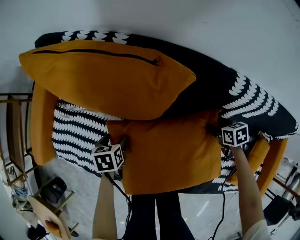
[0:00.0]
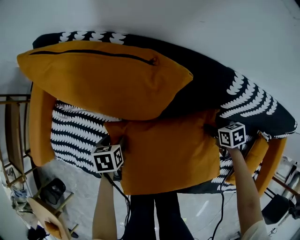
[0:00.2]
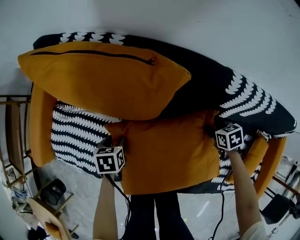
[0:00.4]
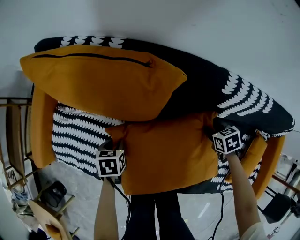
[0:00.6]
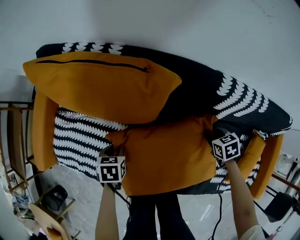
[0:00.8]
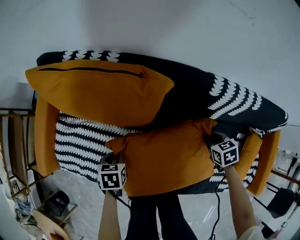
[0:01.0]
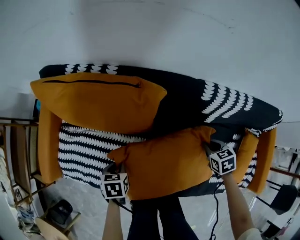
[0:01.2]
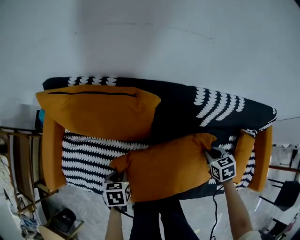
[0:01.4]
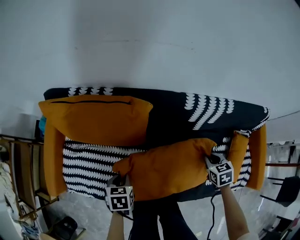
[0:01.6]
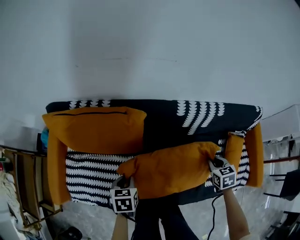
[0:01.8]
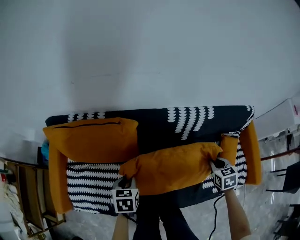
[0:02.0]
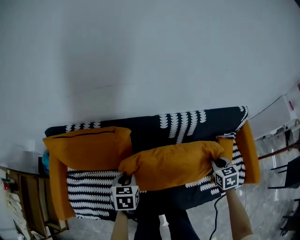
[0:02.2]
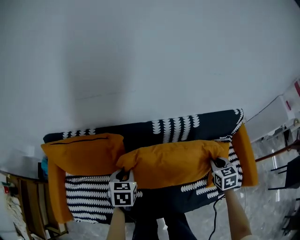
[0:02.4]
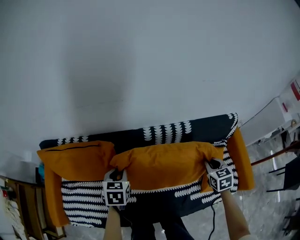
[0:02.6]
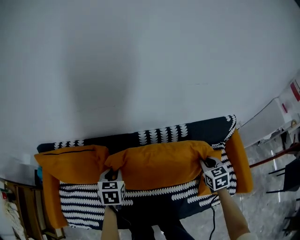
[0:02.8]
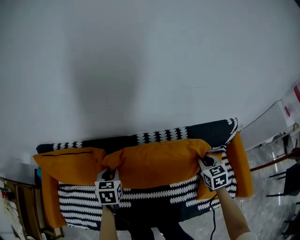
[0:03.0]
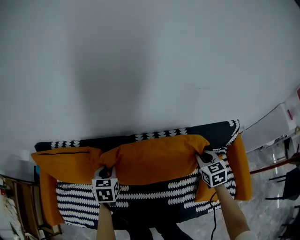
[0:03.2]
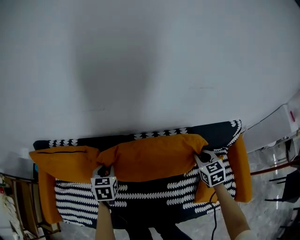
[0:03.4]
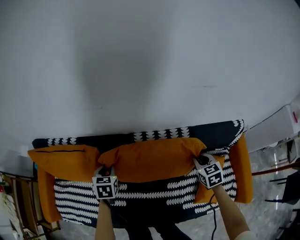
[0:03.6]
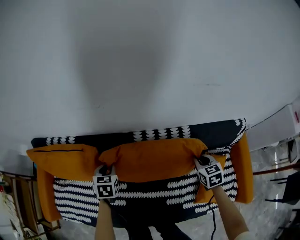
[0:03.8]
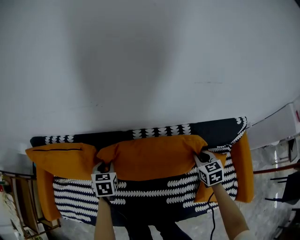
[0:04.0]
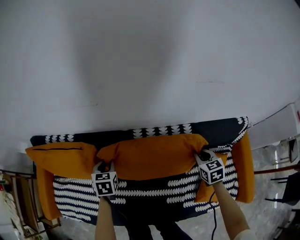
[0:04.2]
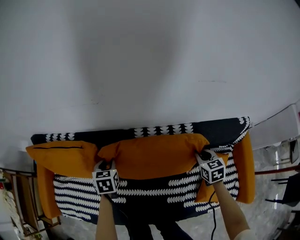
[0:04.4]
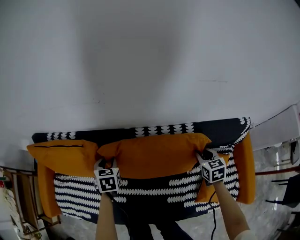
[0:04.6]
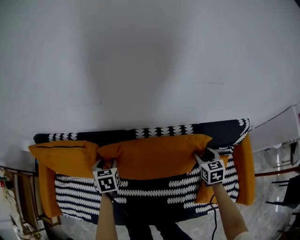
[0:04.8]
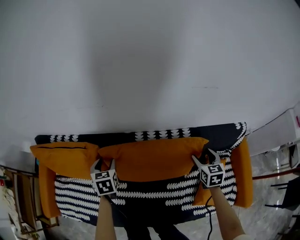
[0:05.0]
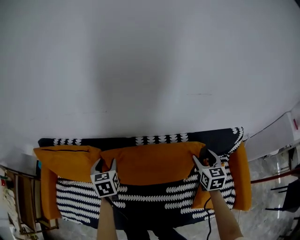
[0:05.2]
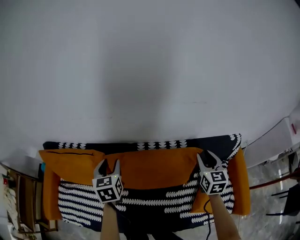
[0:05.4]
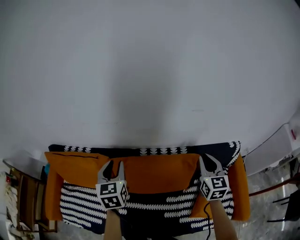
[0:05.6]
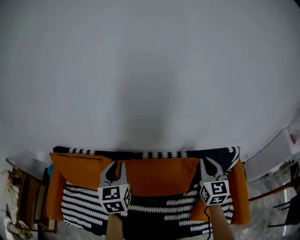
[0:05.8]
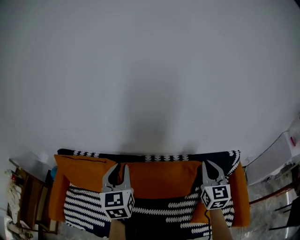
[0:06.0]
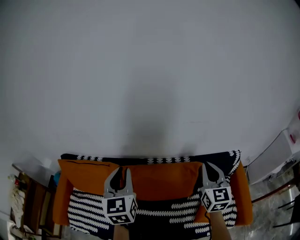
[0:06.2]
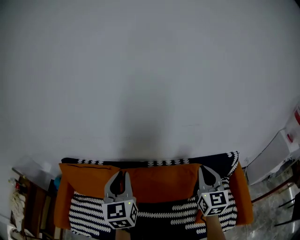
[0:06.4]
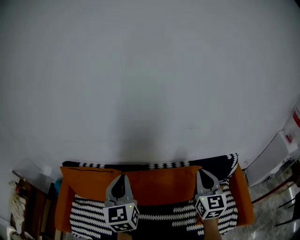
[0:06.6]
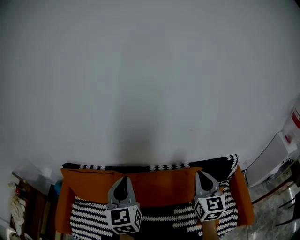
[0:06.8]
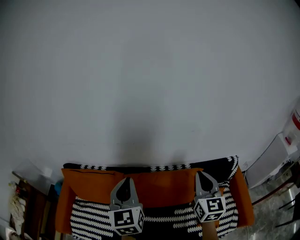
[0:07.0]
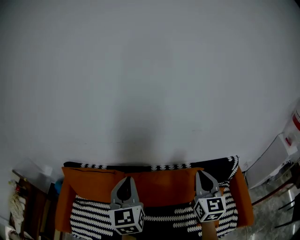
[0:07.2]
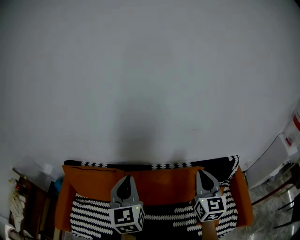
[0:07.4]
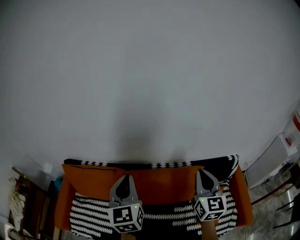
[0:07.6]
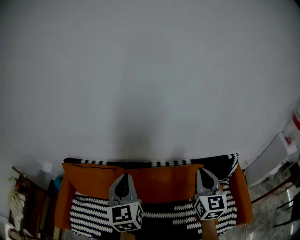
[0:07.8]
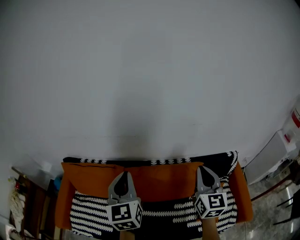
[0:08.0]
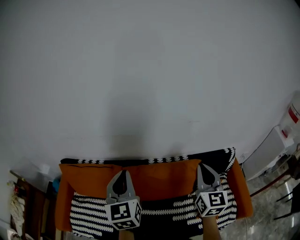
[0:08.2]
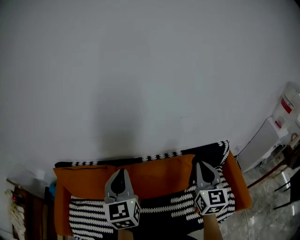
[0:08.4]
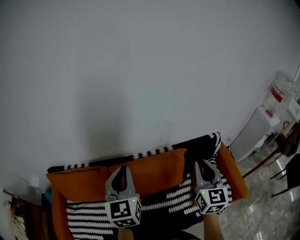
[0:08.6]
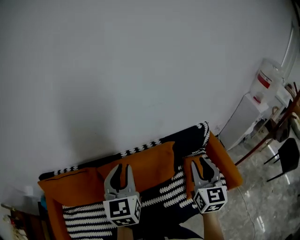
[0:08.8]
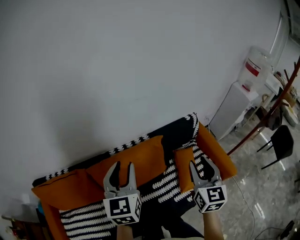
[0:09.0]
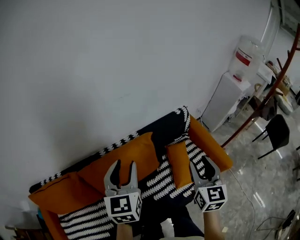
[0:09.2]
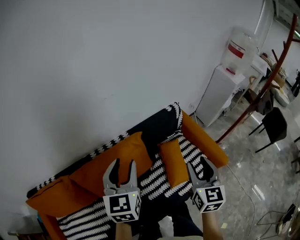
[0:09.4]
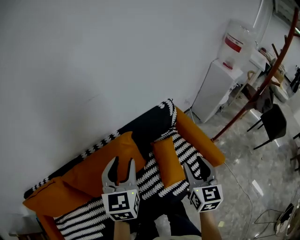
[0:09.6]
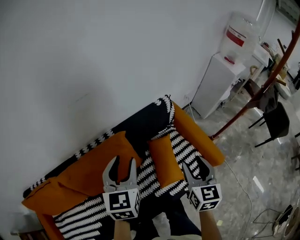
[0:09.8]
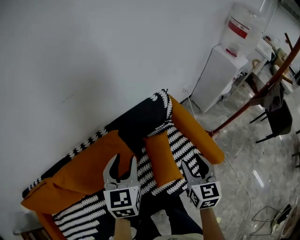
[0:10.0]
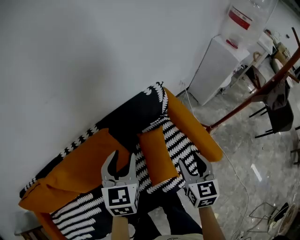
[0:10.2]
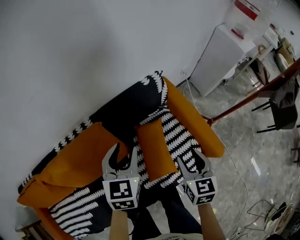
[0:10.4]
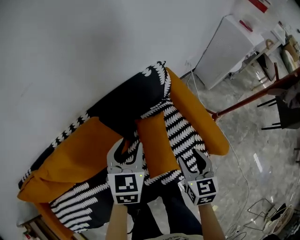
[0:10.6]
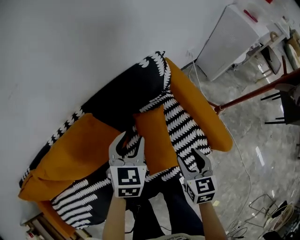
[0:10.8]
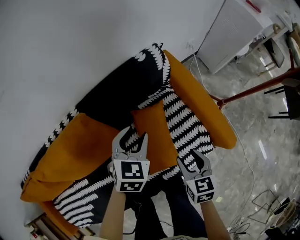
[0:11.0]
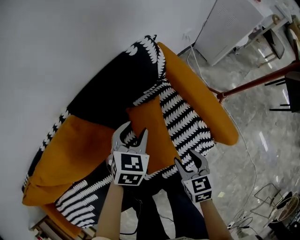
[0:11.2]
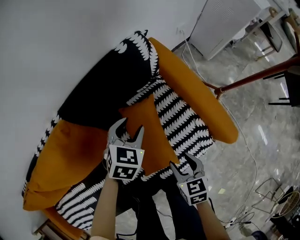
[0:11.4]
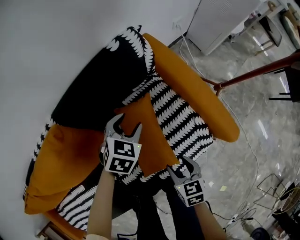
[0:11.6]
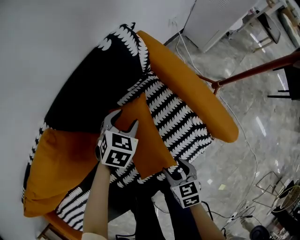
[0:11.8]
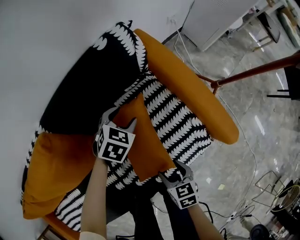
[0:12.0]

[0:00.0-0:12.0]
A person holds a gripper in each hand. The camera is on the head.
0:00.0 to 0:01.6: The grippers both shift upward by some 15 cm. The left gripper closes its fingers; the right gripper rotates some 20 degrees, and closes.
0:01.6 to 0:03.0: The right gripper is displaced to the right, upward and forward by some 25 cm, while the left gripper shifts about 30 cm forward, upward and to the right, and turns by about 20 degrees.
0:03.0 to 0:04.4: The left gripper heads downward, covering some 10 cm, while the right gripper moves downward and forward, roughly 10 cm.
0:04.4 to 0:06.0: Both grippers move upward, roughly 35 cm. The left gripper tips its fingers upward by some 40 degrees, and opens and closes again; the right gripper tips its fingers upward by about 40 degrees, and opens, then closes once more.
0:06.0 to 0:07.6: The left gripper is displaced upward and backward by about 10 cm, while the right gripper is displaced to the left, upward and backward by approximately 15 cm.
0:07.6 to 0:09.0: The left gripper moves roughly 15 cm, turns by approximately 30 degrees, and opens up, while the right gripper shifts by about 15 cm, swivels approximately 30 degrees, and opens.
0:09.0 to 0:10.4: The right gripper is displaced to the right and downward by approximately 35 cm, and turns by approximately 20 degrees, while the left gripper goes approximately 40 cm to the right, downward and forward, and changes its angle by some 30 degrees.
0:10.4 to 0:12.0: Both grippers travel together downward, some 30 cm. The right gripper changes its angle by roughly 30 degrees, while the left gripper turns by roughly 40 degrees.

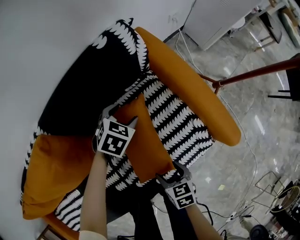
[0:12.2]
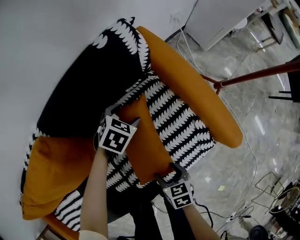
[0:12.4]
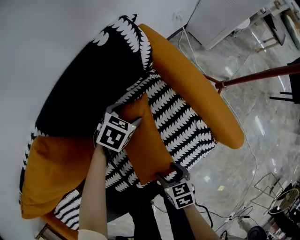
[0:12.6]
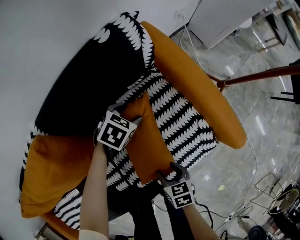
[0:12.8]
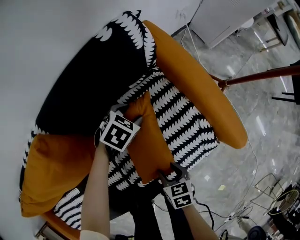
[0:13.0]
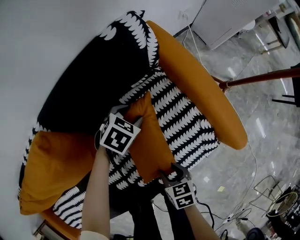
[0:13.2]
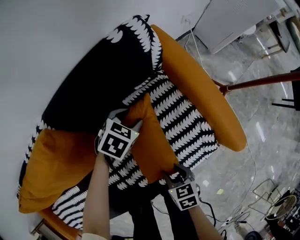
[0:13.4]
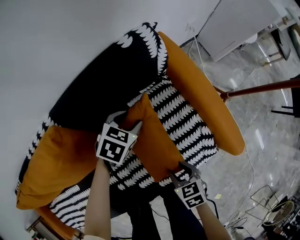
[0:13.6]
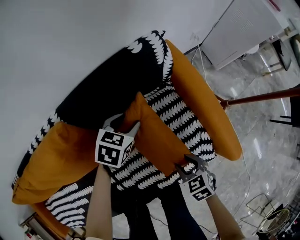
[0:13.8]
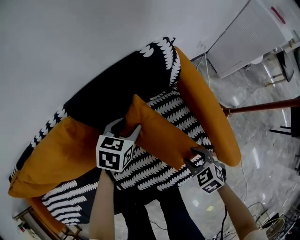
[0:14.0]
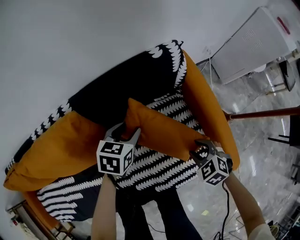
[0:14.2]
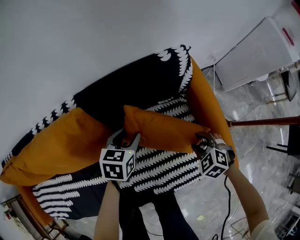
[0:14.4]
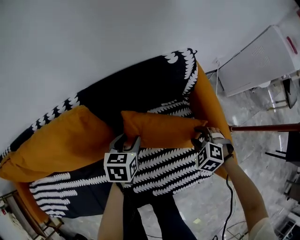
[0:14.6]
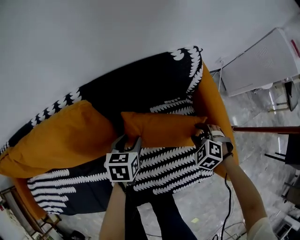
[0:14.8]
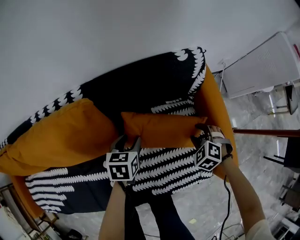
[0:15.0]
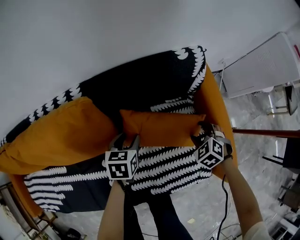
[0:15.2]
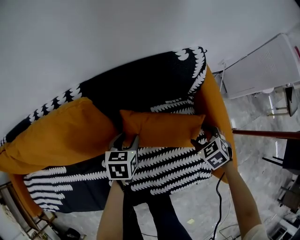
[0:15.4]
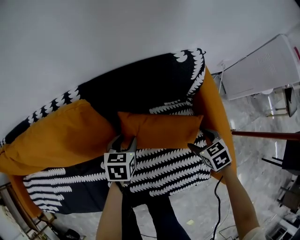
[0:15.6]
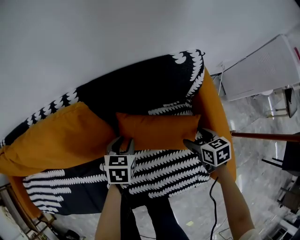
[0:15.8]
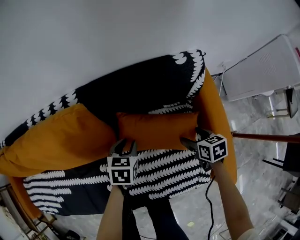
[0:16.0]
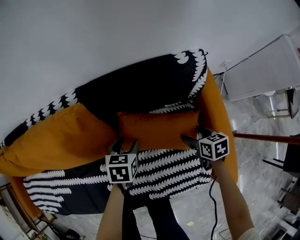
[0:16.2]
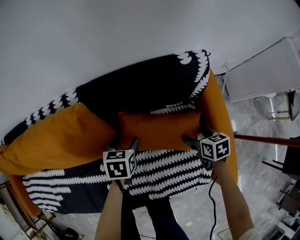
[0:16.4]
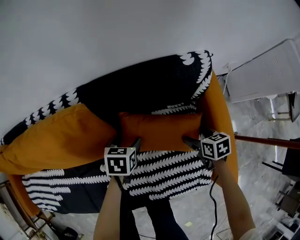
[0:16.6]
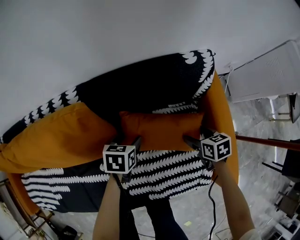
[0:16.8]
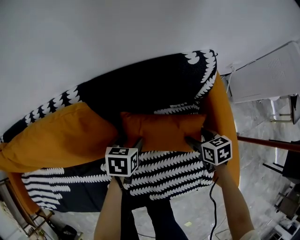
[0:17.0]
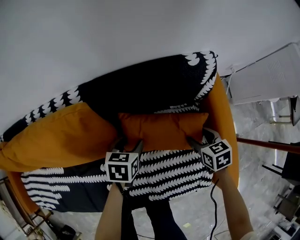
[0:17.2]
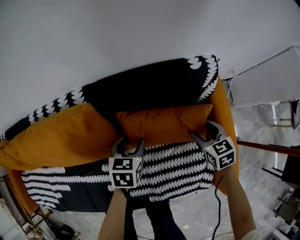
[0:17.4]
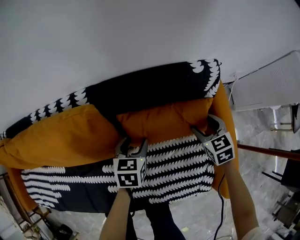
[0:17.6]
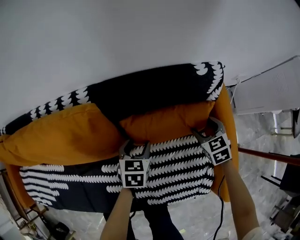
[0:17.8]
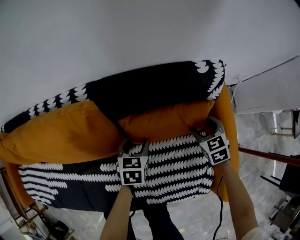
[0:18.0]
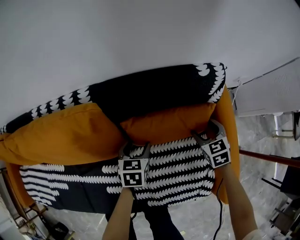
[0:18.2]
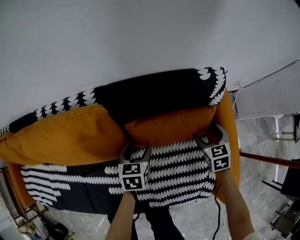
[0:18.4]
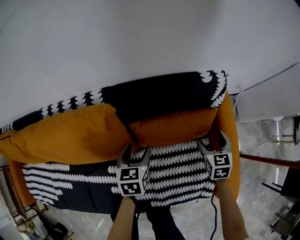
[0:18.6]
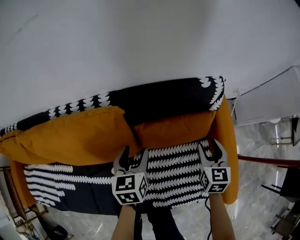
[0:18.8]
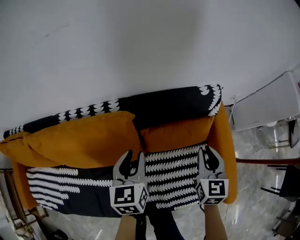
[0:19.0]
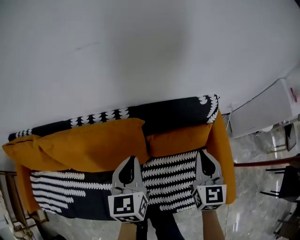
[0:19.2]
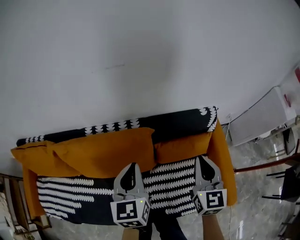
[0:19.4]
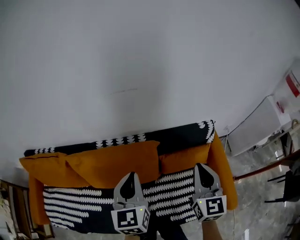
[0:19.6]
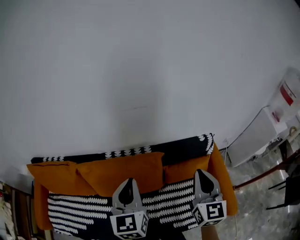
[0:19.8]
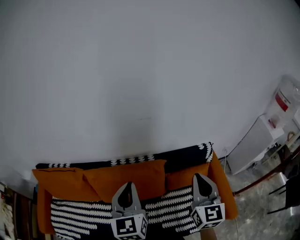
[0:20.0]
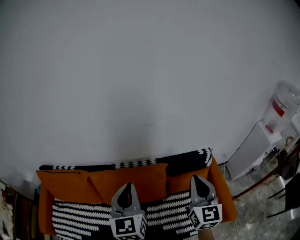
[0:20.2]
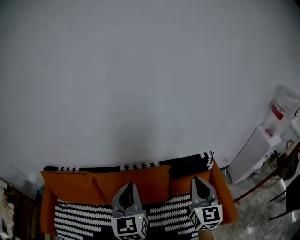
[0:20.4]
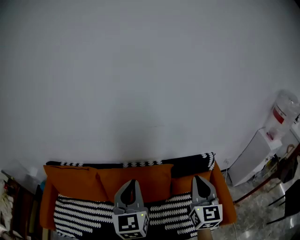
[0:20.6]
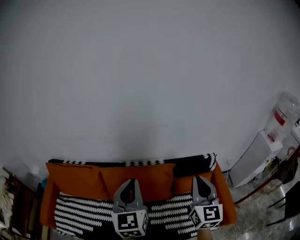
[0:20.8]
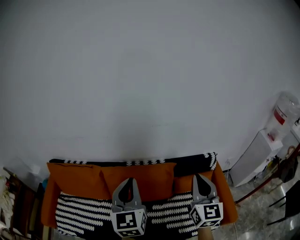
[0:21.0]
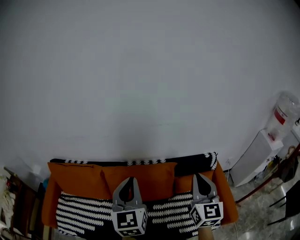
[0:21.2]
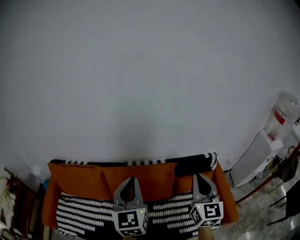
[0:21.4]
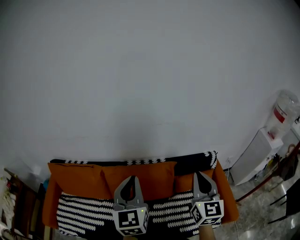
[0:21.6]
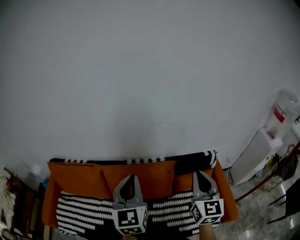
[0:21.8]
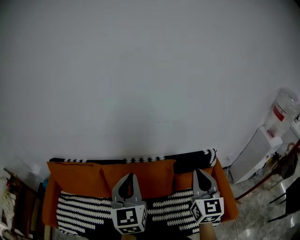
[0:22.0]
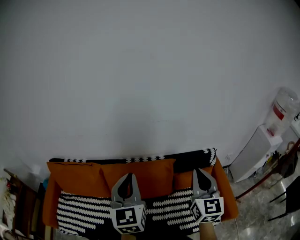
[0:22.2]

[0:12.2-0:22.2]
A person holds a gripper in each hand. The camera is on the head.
0:12.2 to 0:13.6: The right gripper closes its fingers.
0:13.6 to 0:15.0: The left gripper goes some 15 cm to the left and backward, and twists approximately 40 degrees counterclockwise, seen from behind. Meanwhile the right gripper heads forward, covering some 20 cm, and rolls counterclockwise, seen from behind, by roughly 60 degrees.
0:15.0 to 0:16.4: The left gripper opens up. Meanwhile the right gripper rotates around the line of its fingers by some 60 degrees, clockwise from behind, and opens its fingers.
0:16.4 to 0:18.0: The right gripper is displaced forward by some 10 cm, and rotates approximately 30 degrees.
0:18.0 to 0:19.4: The two grippers go about 40 cm upward and to the left. The left gripper points its fingers roughly 30 degrees further upward, and closes its fingers. The right gripper tips its fingers upward by about 40 degrees, and closes its fingers.
0:19.4 to 0:20.8: The grippers both shift upward, to the left and backward by some 30 cm. The left gripper turns by about 20 degrees.
0:20.8 to 0:22.2: The grippers make only small movements.

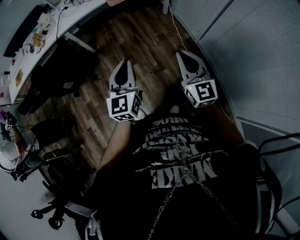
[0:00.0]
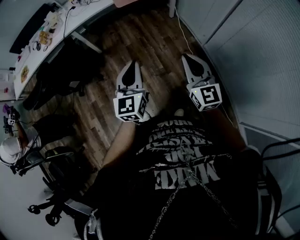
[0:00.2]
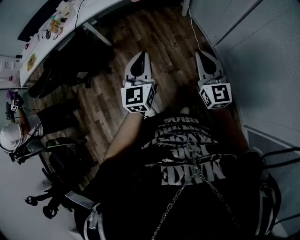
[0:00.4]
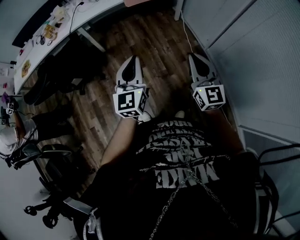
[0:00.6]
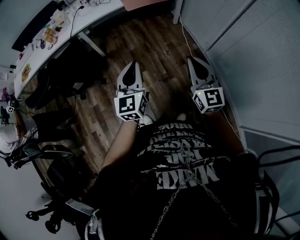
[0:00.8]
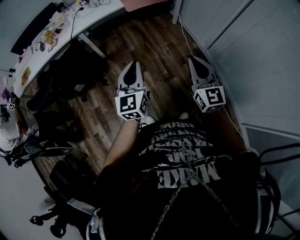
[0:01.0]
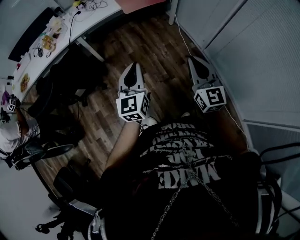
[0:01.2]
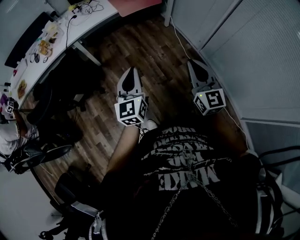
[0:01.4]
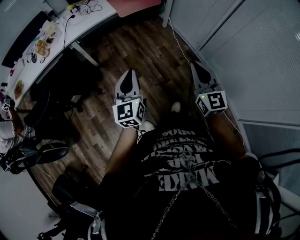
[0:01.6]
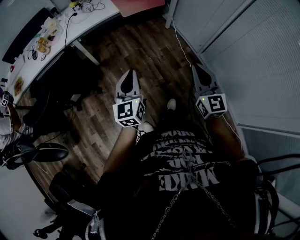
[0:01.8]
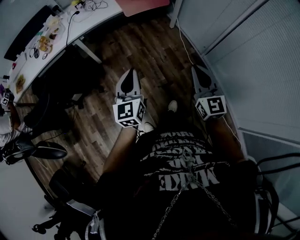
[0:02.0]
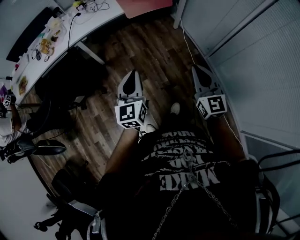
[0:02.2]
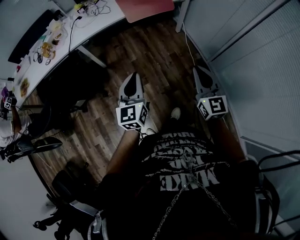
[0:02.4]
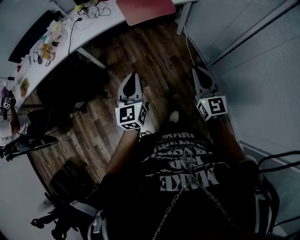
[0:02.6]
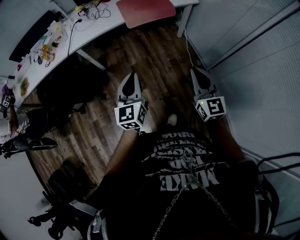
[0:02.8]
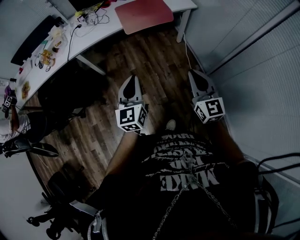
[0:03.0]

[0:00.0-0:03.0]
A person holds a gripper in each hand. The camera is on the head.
0:00.0 to 0:01.6: The left gripper goes roughly 15 cm to the left and forward; the right gripper travels to the left by approximately 10 cm.
0:01.6 to 0:03.0: Both grippers travel together forward and to the right, some 15 cm.
